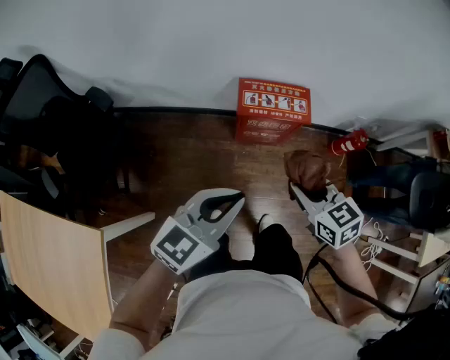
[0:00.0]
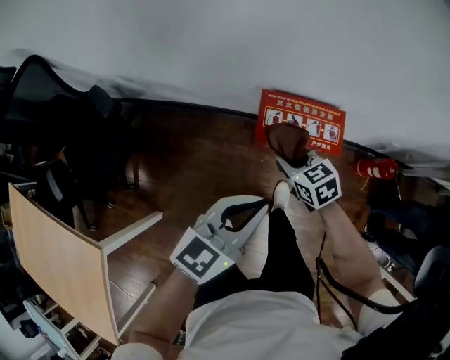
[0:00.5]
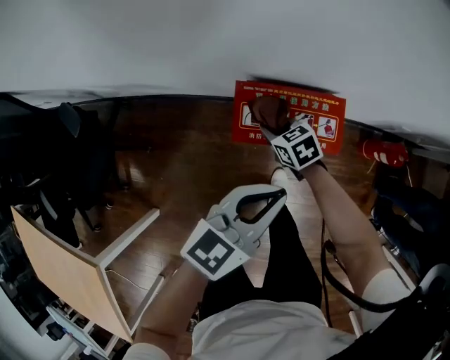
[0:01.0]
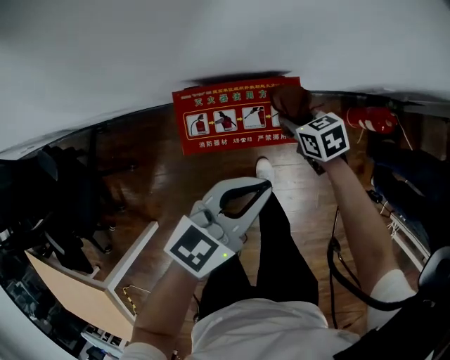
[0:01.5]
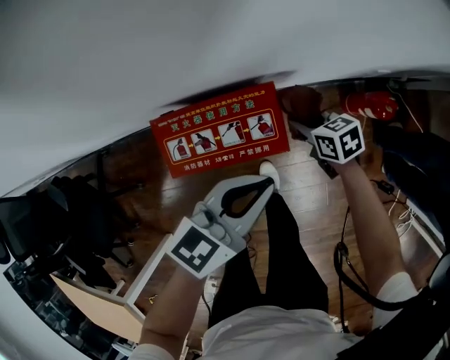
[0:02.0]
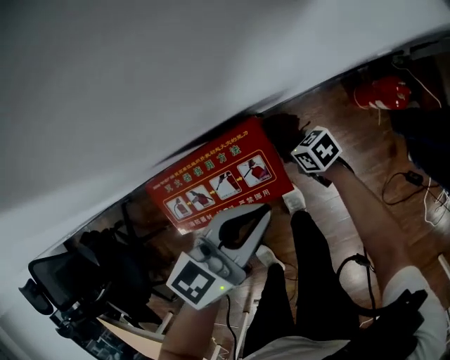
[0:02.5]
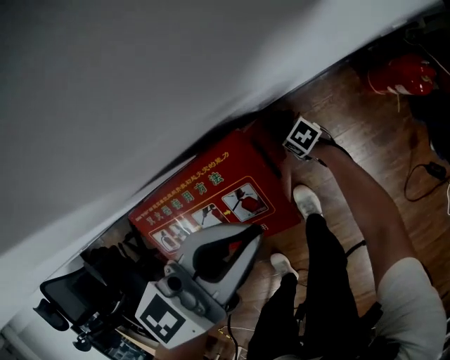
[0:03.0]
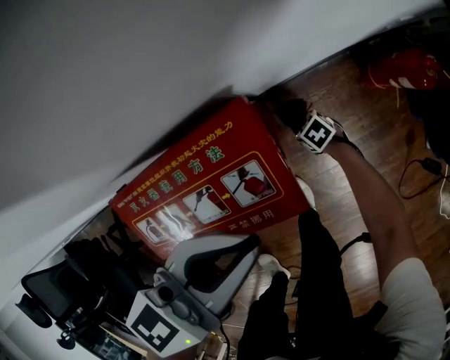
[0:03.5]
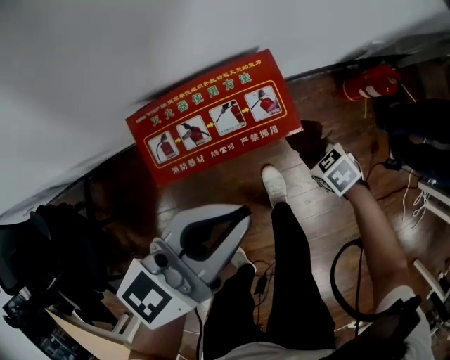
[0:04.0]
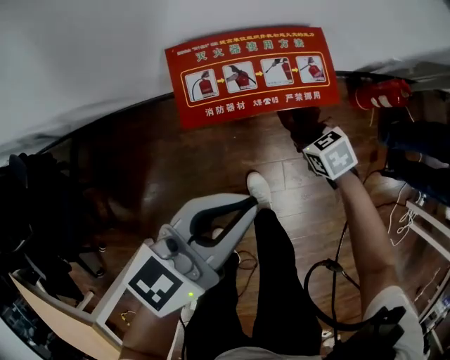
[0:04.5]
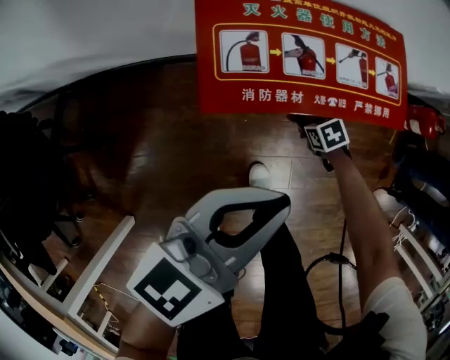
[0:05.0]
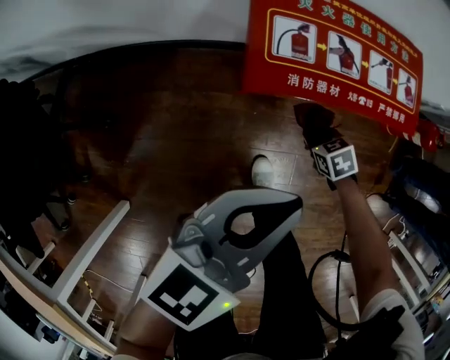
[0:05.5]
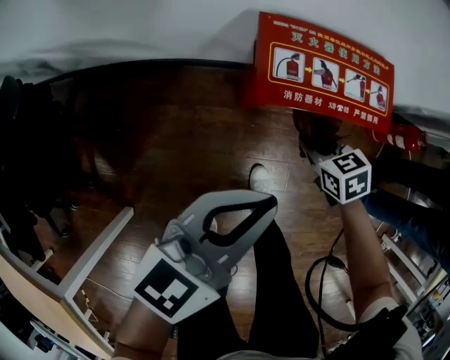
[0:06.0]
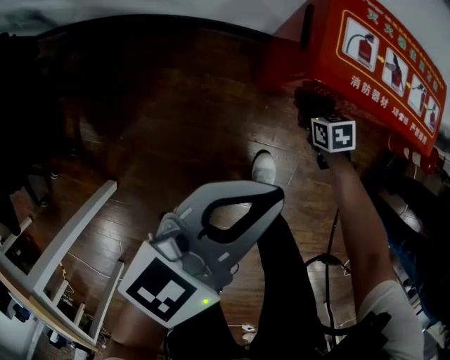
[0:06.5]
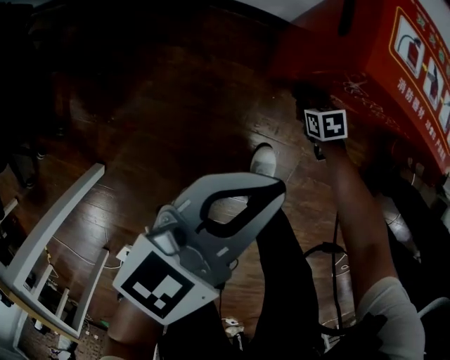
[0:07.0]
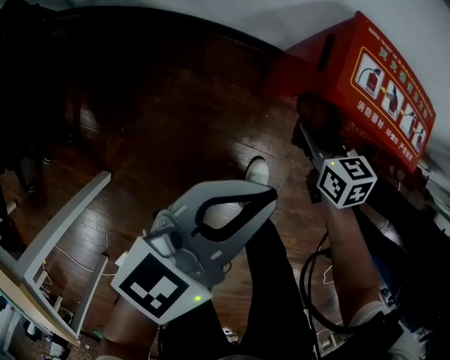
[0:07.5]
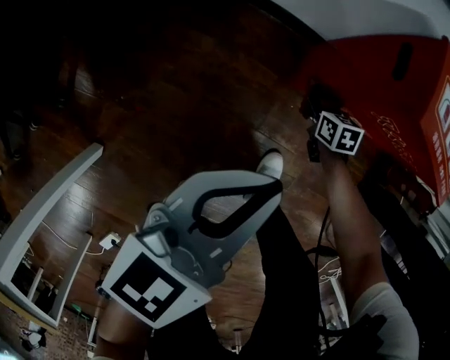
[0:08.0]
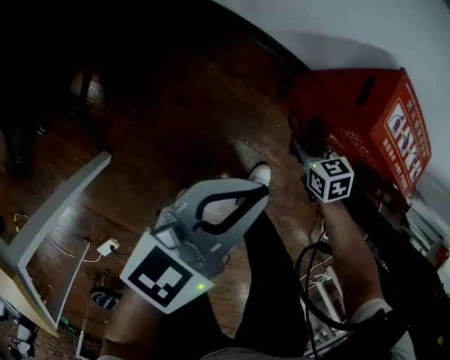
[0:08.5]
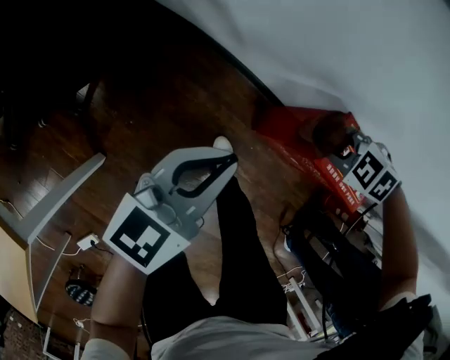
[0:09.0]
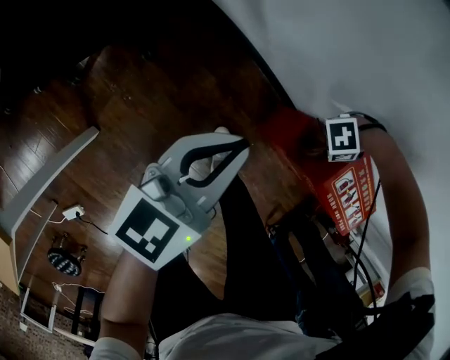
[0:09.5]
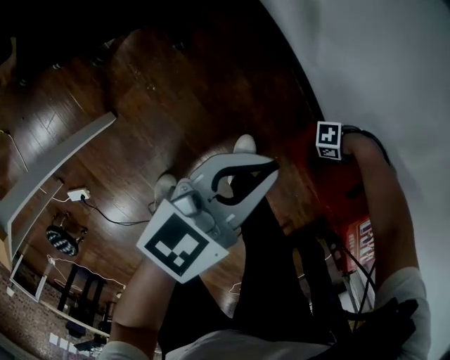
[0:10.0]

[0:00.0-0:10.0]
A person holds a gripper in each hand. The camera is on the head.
0:00.0 to 0:02.0: Both grippers are carried forward and to the right, some 40 cm. The right gripper is displaced downward by some 30 cm, and turns by about 30 degrees, while the left gripper shifts some 20 cm downward.
0:02.0 to 0:04.0: The right gripper travels downward and back again, some 35 cm each way, and swivels roughly 30 degrees. The left gripper goes downward and returns, about 10 cm each way.
0:04.0 to 0:06.0: The left gripper shifts some 20 cm to the left and backward. Meanwhile the right gripper is displaced to the left by some 20 cm, and reaches roughly 20 cm downward, then returns.
0:06.0 to 0:08.0: The right gripper goes up and down, about 30 cm each way, reversing 2 times; the left gripper goes up and down, about 15 cm each way, reversing 2 times, and swivels approximately 20 degrees.
0:08.0 to 0:10.0: The left gripper reaches some 10 cm upward, then returns, and turns by roughly 30 degrees; the right gripper goes upward and returns, some 35 cm each way, and rotates some 130 degrees.

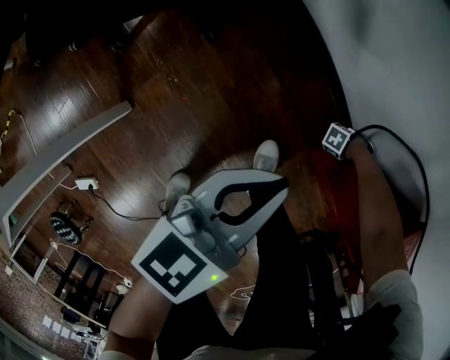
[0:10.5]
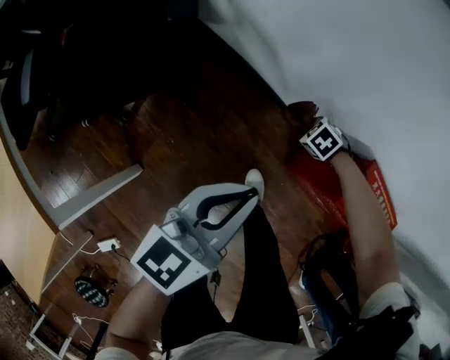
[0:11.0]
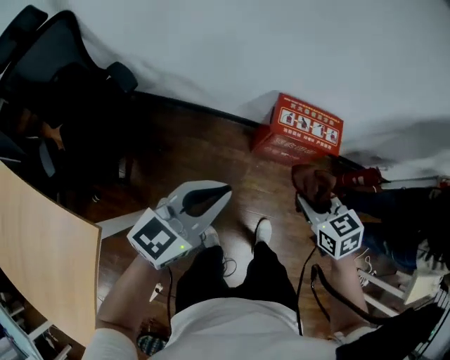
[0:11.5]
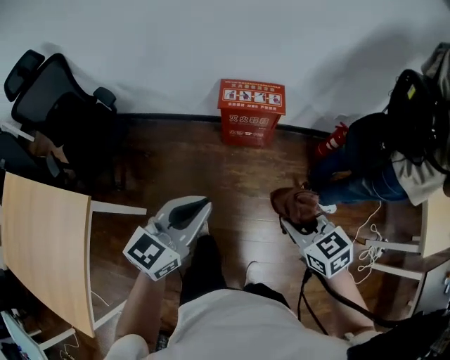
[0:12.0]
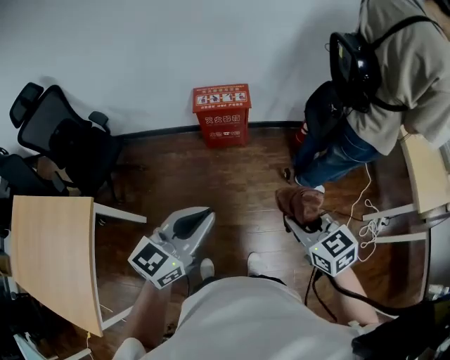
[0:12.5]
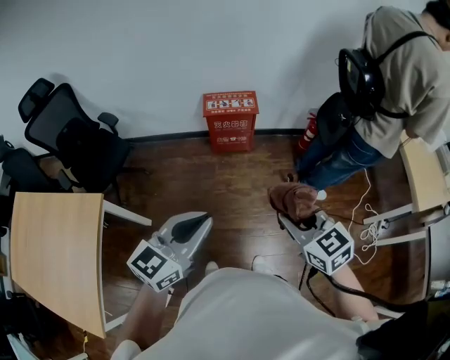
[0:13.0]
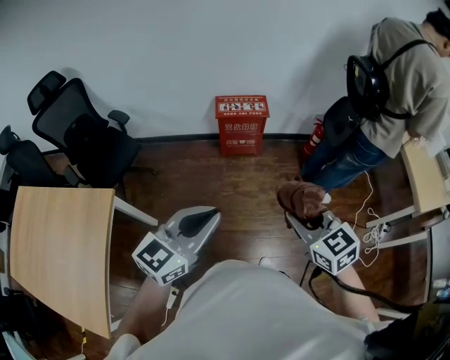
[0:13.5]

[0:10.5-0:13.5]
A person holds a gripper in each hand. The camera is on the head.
0:10.5 to 0:12.0: The pair of grippers is taken about 50 cm. The left gripper changes its angle by about 50 degrees. The right gripper is displaced upward by some 70 cm, and changes its angle by some 120 degrees.
0:12.0 to 0:13.5: The two grippers go roughly 20 cm backward and upward.

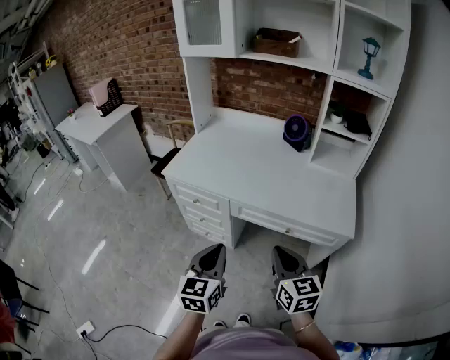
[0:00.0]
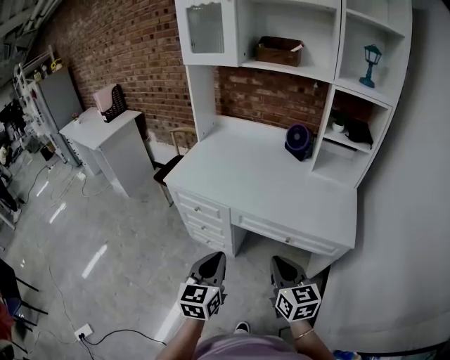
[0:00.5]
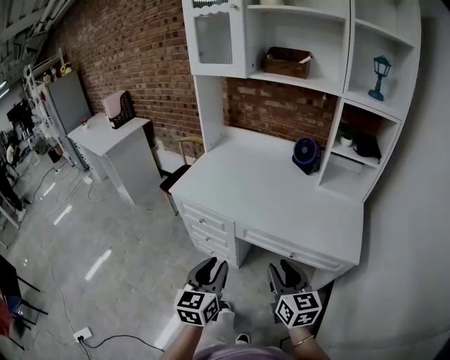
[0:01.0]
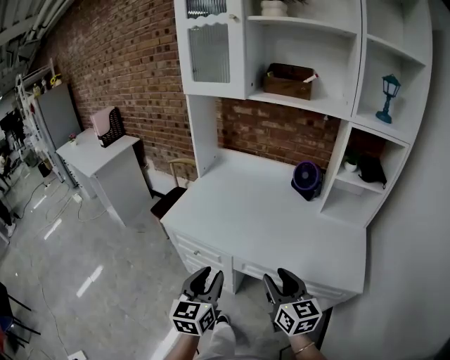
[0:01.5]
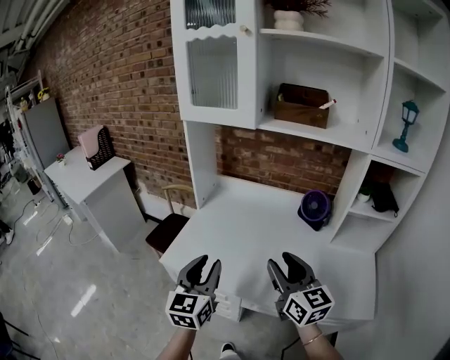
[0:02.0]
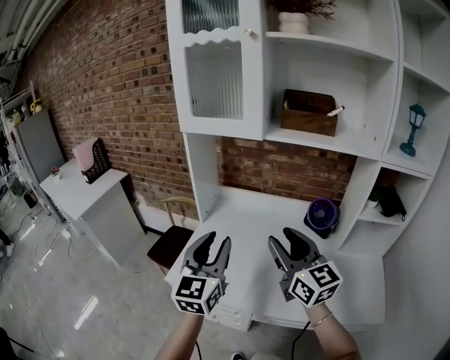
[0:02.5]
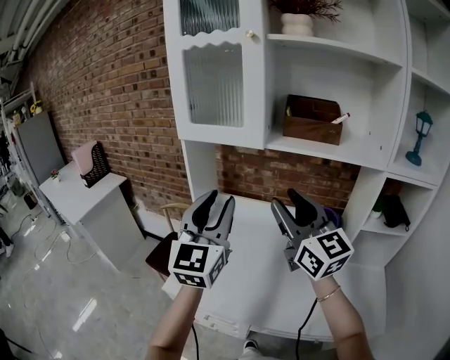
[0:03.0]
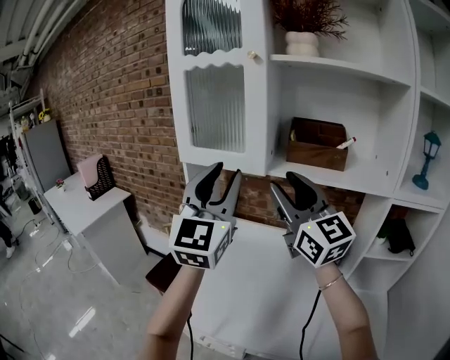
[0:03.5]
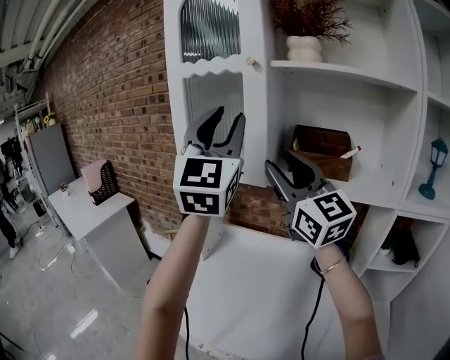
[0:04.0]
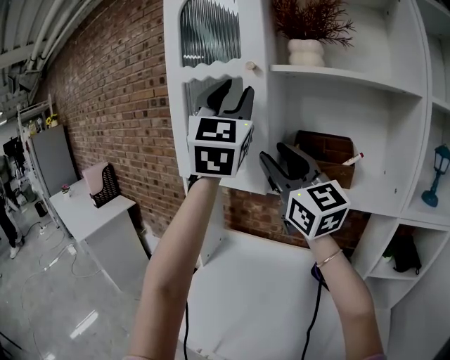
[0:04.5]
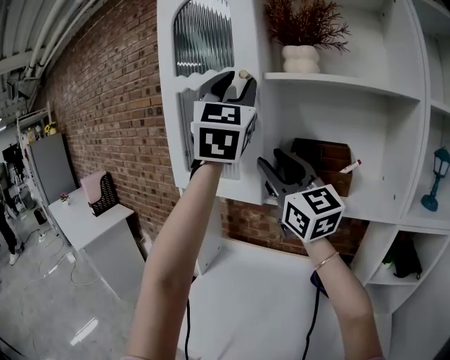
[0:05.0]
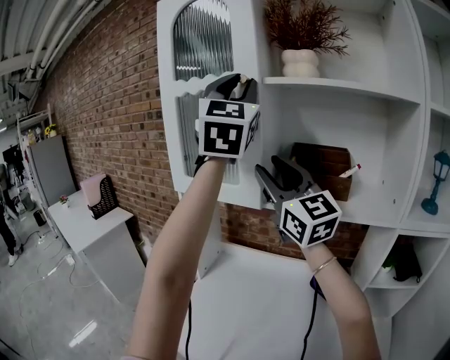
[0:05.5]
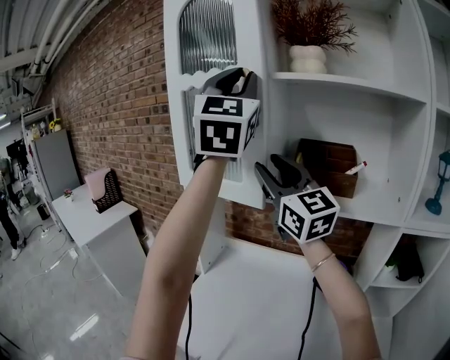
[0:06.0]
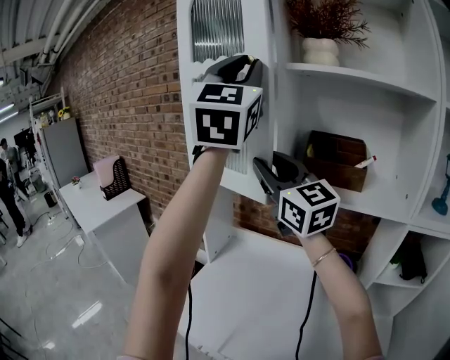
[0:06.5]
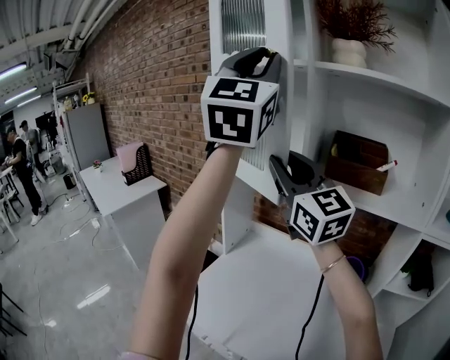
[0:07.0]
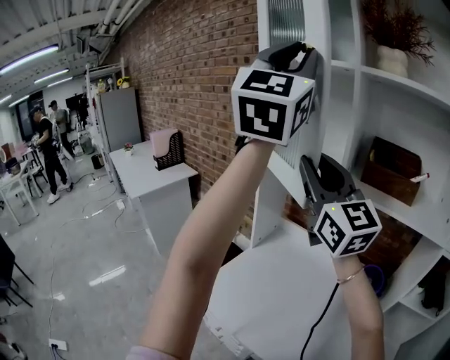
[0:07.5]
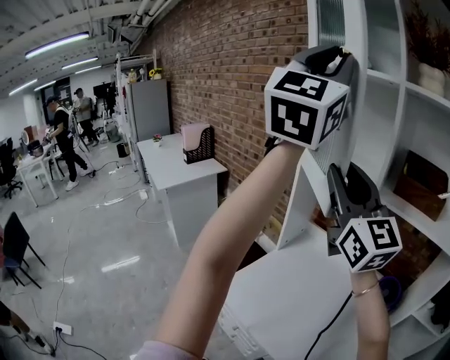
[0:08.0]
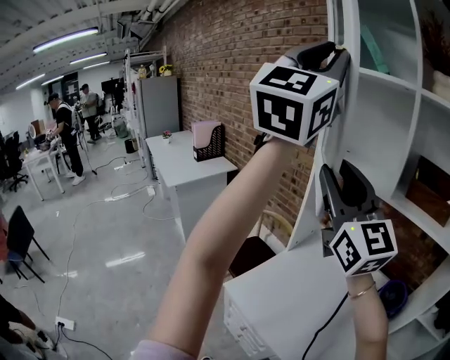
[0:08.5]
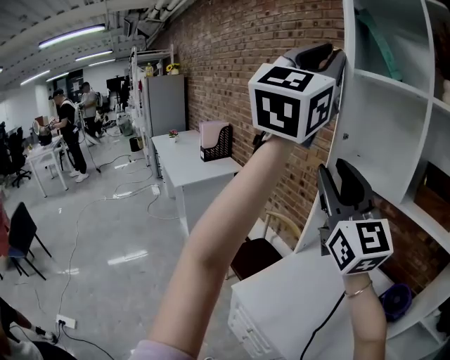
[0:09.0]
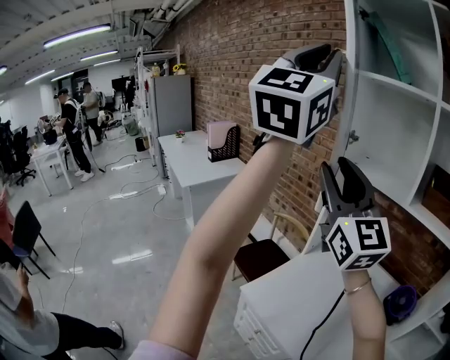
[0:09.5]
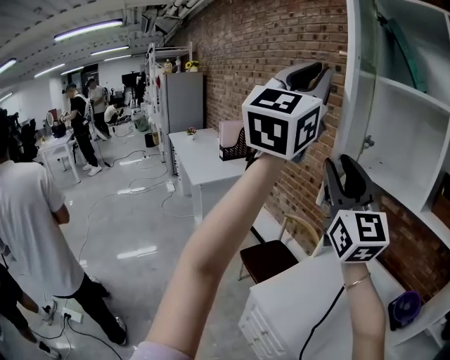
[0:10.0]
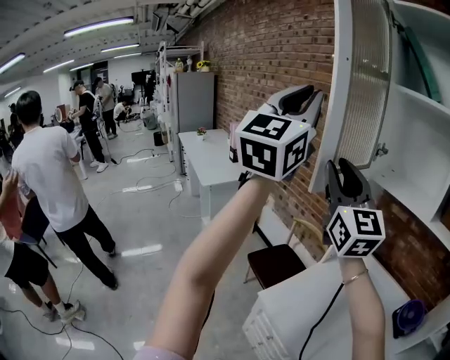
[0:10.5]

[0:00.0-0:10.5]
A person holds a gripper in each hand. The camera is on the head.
0:00.0 to 0:02.0: Both grippers travel together forward, roughly 30 cm. The right gripper opens, while the left gripper opens.
0:02.0 to 0:04.0: The two grippers go about 50 cm upward and forward. The right gripper changes its angle by roughly 30 degrees; the left gripper points its fingers approximately 30 degrees further upward.
0:04.0 to 0:06.5: The left gripper is displaced upward by roughly 10 cm, while the right gripper travels forward by some 5 cm.
0:06.5 to 0:08.5: Both grippers move to the left and backward, some 20 cm.
0:08.5 to 0:10.5: The left gripper moves to the left and downward, roughly 20 cm. The right gripper heads to the left, covering some 15 cm.

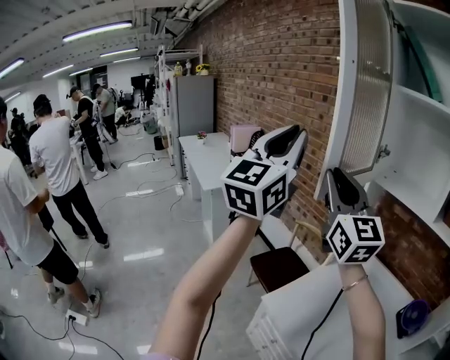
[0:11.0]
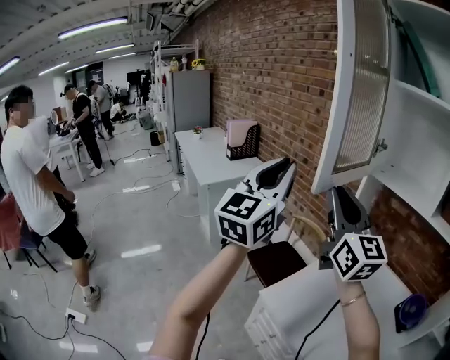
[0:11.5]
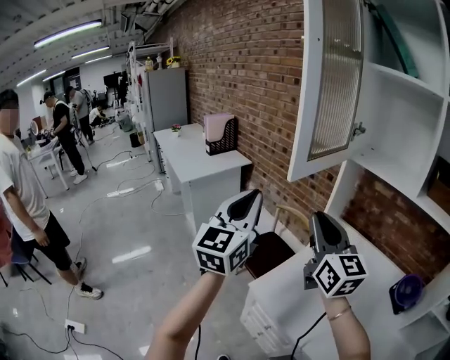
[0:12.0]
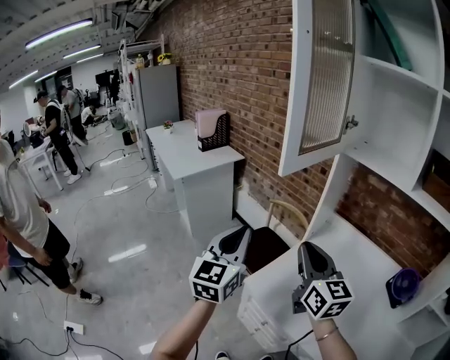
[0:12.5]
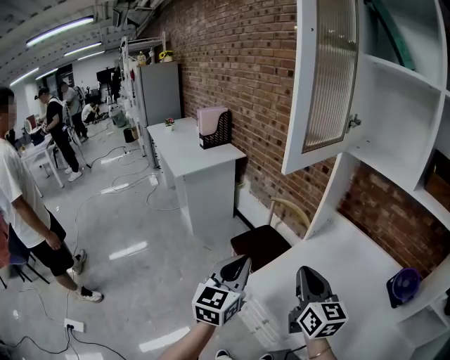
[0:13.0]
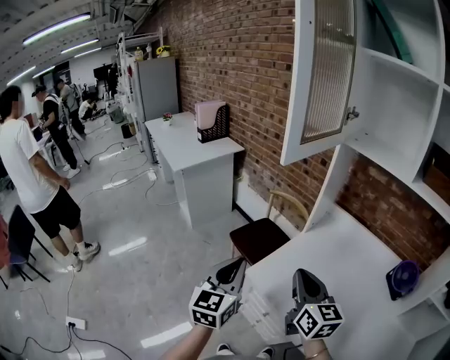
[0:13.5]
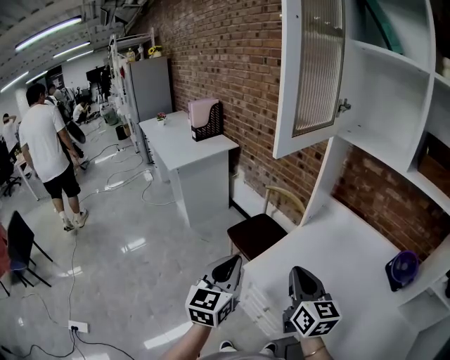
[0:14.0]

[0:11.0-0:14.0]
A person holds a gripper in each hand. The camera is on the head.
0:11.0 to 0:12.5: The grippers both shift downward by approximately 25 cm. The left gripper rotates approximately 30 degrees, while the right gripper rotates about 30 degrees.
0:12.5 to 0:14.0: The two grippers go about 10 cm downward and backward.
